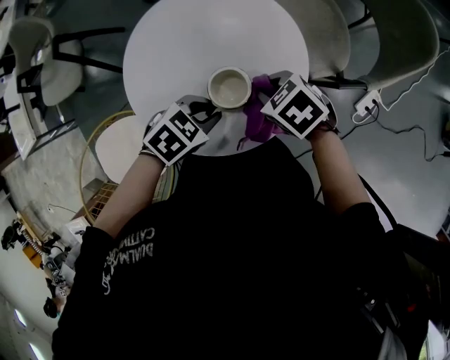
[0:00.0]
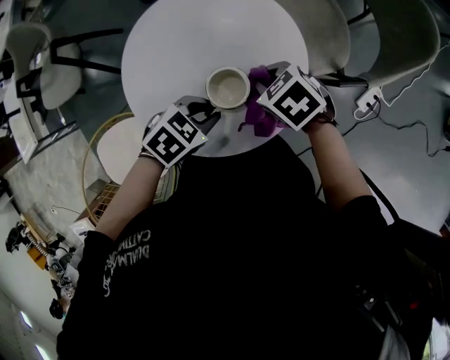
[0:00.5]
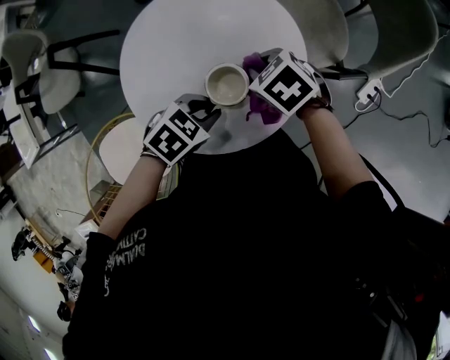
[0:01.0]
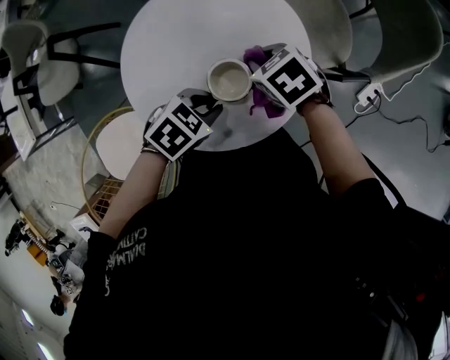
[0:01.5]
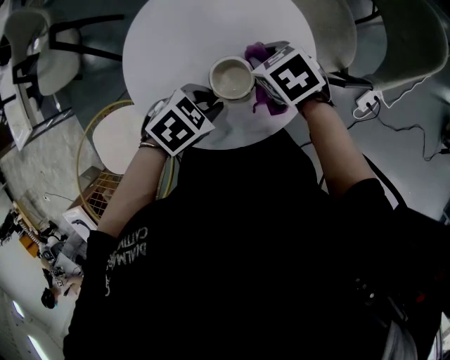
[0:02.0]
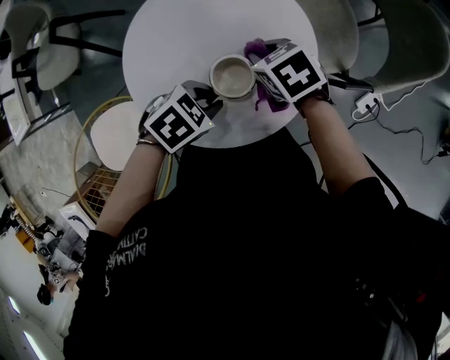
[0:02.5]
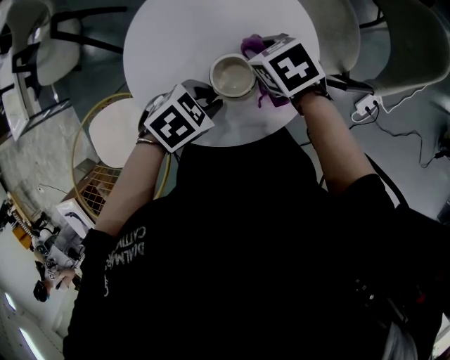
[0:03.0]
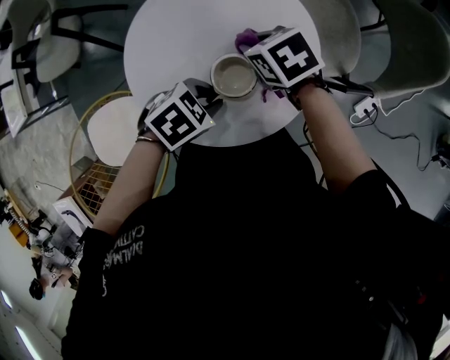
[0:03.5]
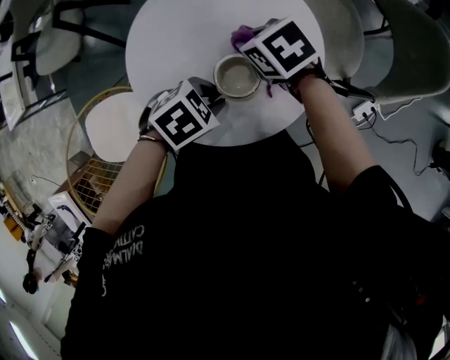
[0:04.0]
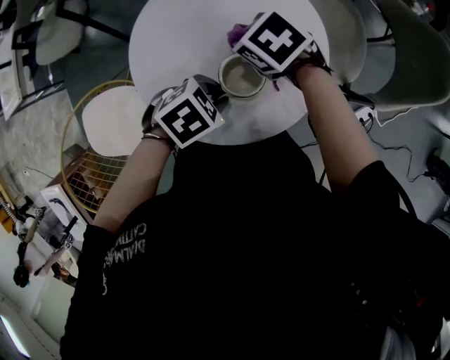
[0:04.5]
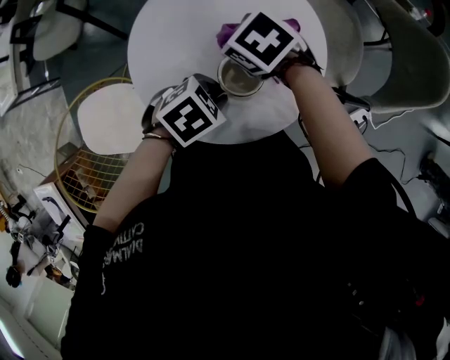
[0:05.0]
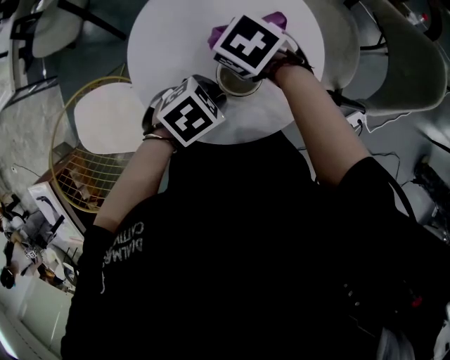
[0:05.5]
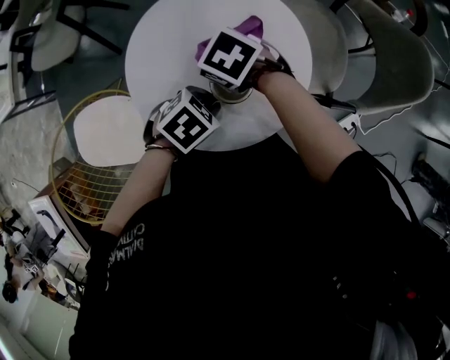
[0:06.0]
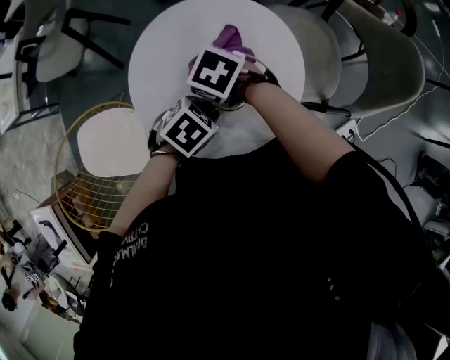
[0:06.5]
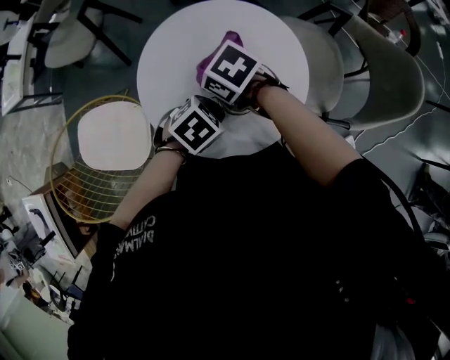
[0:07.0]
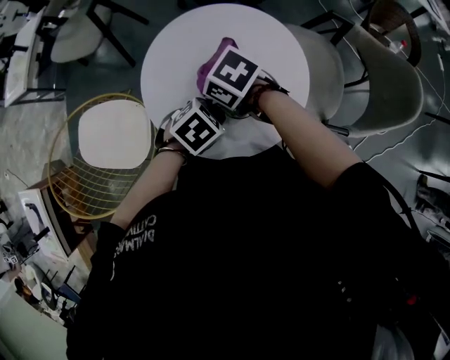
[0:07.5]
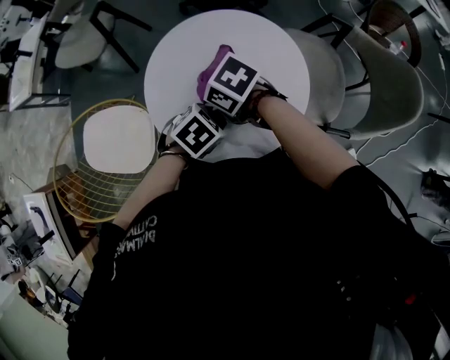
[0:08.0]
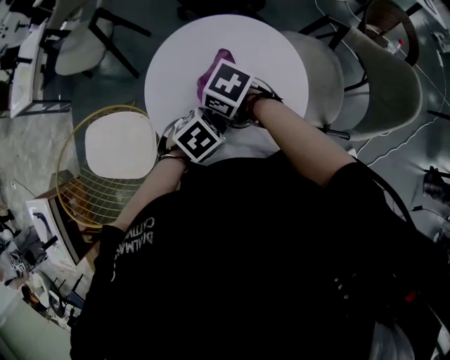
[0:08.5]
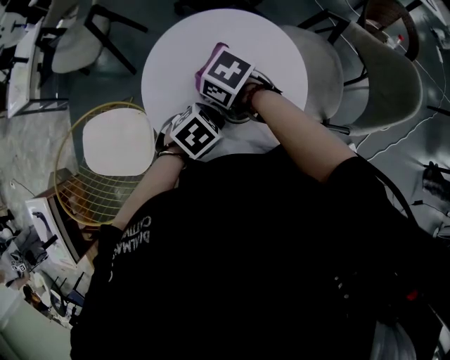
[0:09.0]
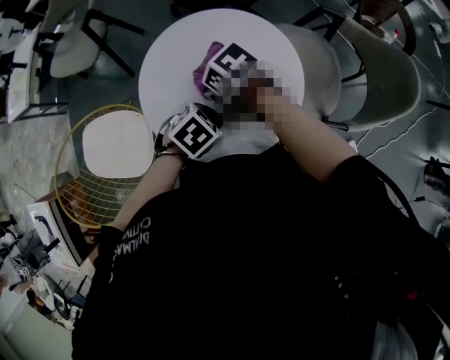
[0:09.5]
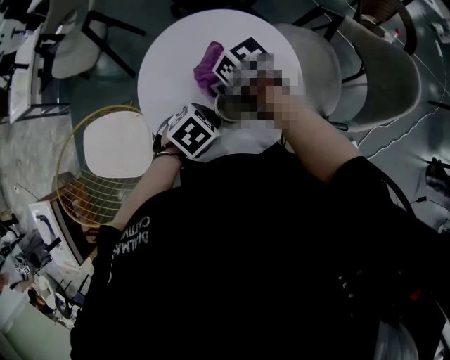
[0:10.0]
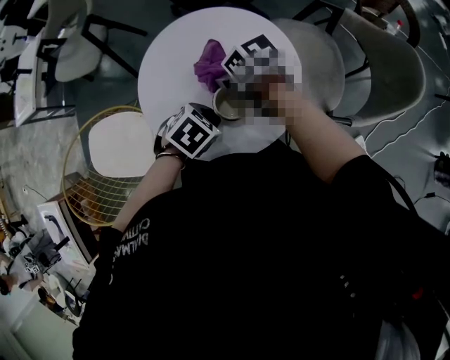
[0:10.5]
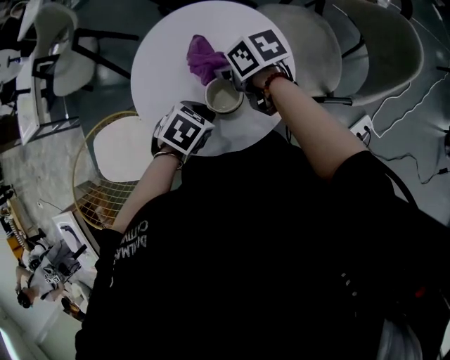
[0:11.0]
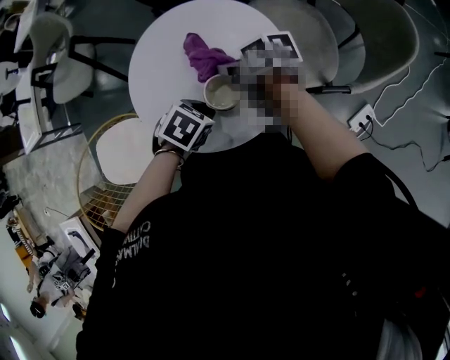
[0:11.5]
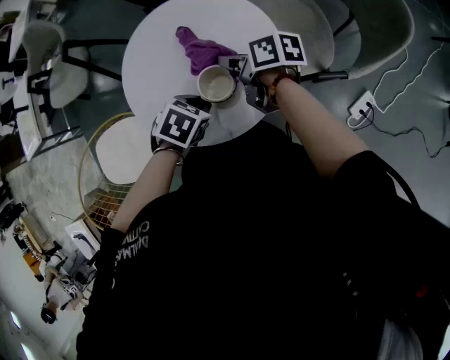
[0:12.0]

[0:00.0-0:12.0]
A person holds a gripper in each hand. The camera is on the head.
0:00.0 to 0:02.0: The right gripper changes place by roughly 5 cm.
0:02.0 to 0:04.0: The right gripper changes place by roughly 5 cm.
0:04.0 to 0:06.0: The right gripper moves about 10 cm, and turns by some 20 degrees.
0:06.0 to 0:08.0: The right gripper shifts by roughly 10 cm.
0:08.0 to 0:10.0: The right gripper shifts by approximately 5 cm, and rotates approximately 20 degrees.
0:10.0 to 0:12.0: The right gripper moves approximately 10 cm, and swivels roughly 50 degrees.

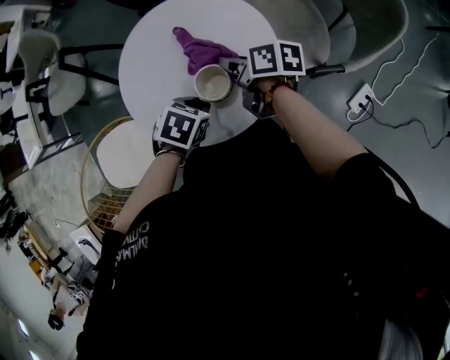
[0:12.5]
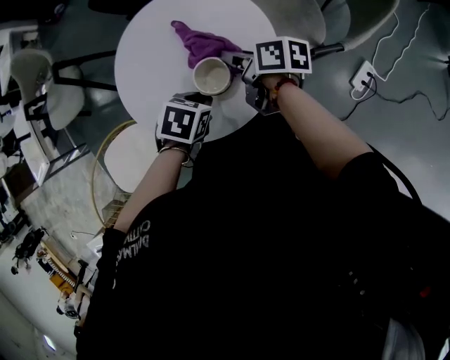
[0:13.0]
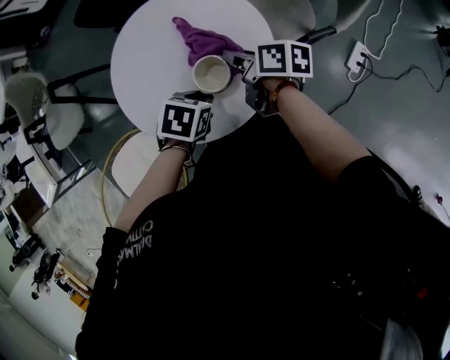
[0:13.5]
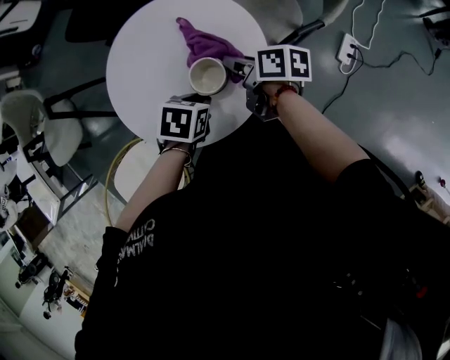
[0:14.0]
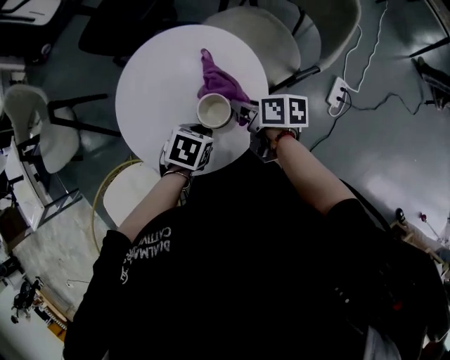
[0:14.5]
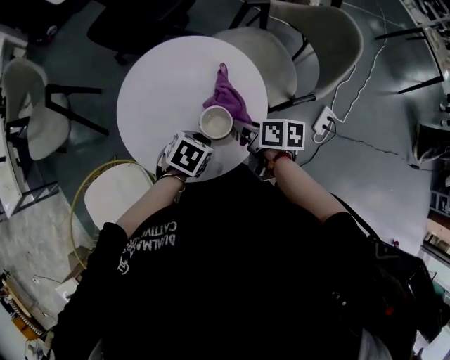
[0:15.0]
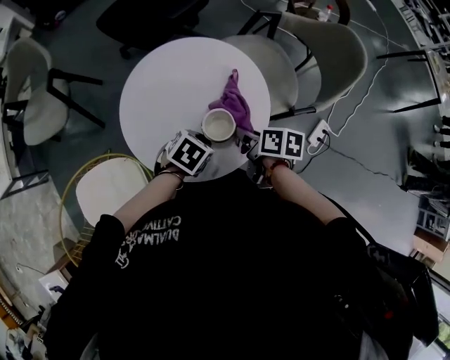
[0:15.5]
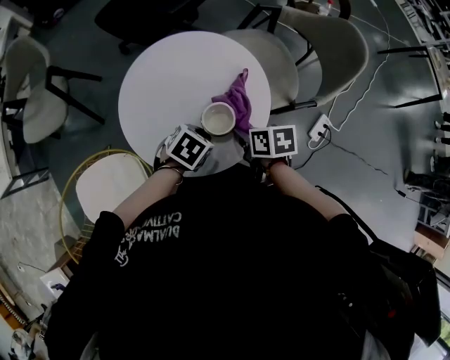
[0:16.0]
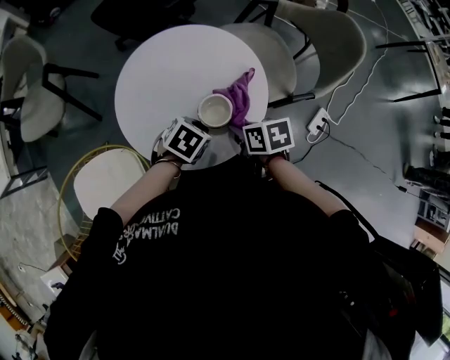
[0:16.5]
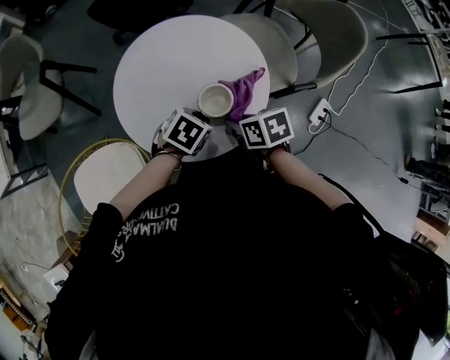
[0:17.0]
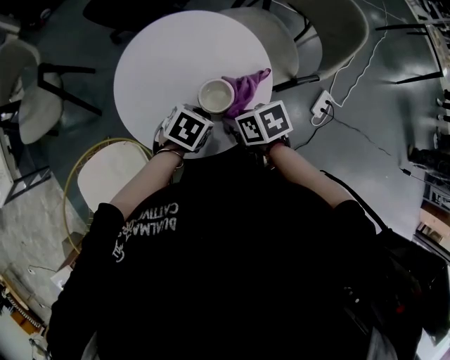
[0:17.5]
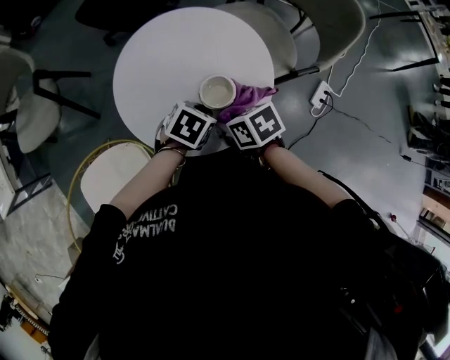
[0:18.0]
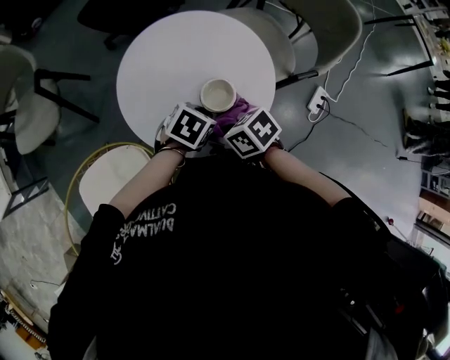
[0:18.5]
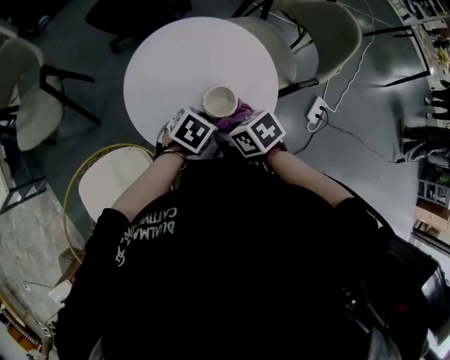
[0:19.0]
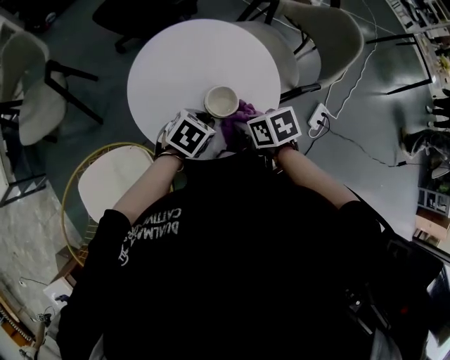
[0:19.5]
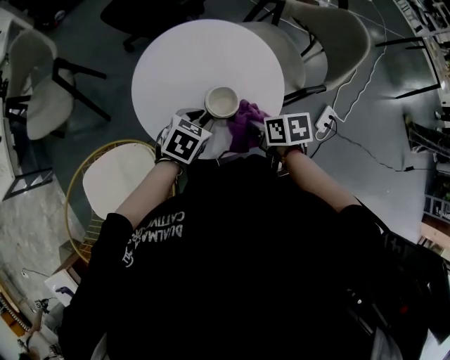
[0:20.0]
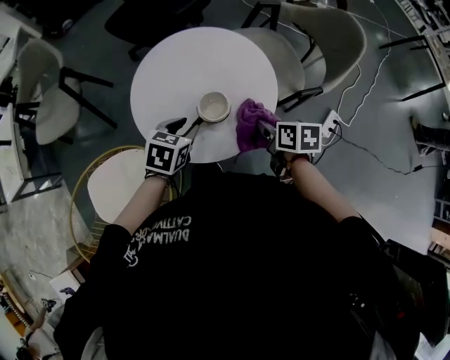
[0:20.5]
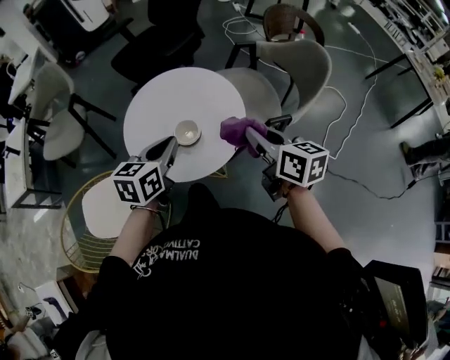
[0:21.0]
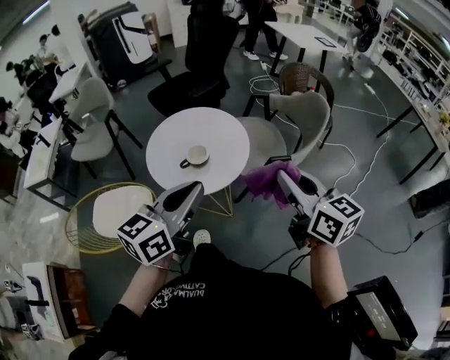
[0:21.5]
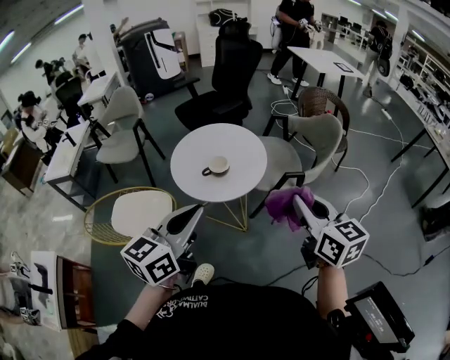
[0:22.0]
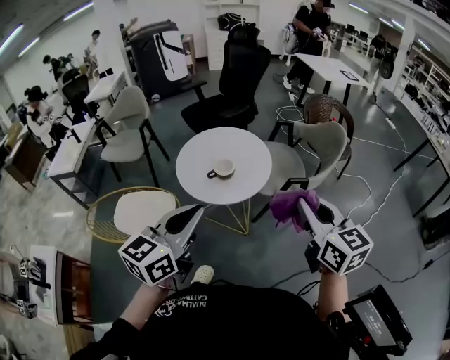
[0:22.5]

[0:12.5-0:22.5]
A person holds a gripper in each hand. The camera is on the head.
0:12.5 to 0:14.5: The right gripper heads backward, covering approximately 5 cm.
0:14.5 to 0:16.5: The right gripper travels backward by approximately 5 cm, and changes its angle by about 30 degrees.
0:16.5 to 0:18.5: The right gripper shifts by some 15 cm, and turns by approximately 20 degrees.
0:18.5 to 0:20.5: The left gripper ends up about 5 cm from where it was, and turns by some 20 degrees. Meanwhile the right gripper ends up some 20 cm from where it was, and rotates about 40 degrees.
0:20.5 to 0:22.5: The left gripper travels backward and upward by some 50 cm, points its fingers roughly 50 degrees further upward, and closes; the right gripper shifts approximately 50 cm upward, backward and to the right, and points its fingers some 40 degrees further upward.

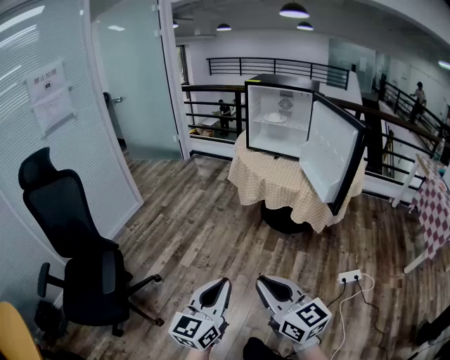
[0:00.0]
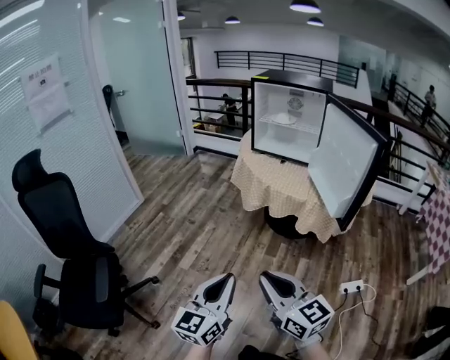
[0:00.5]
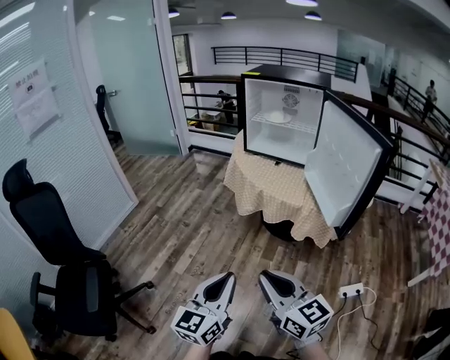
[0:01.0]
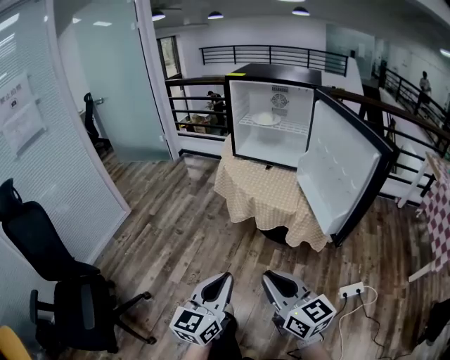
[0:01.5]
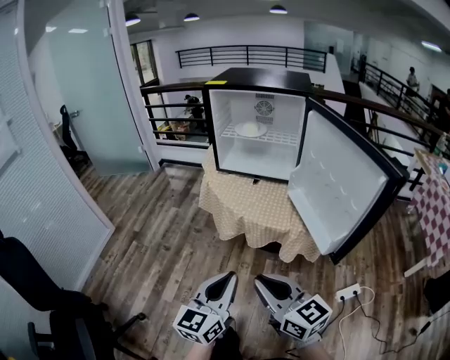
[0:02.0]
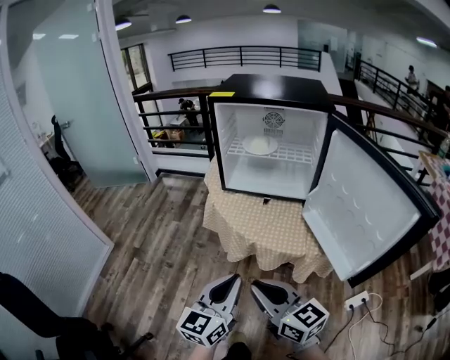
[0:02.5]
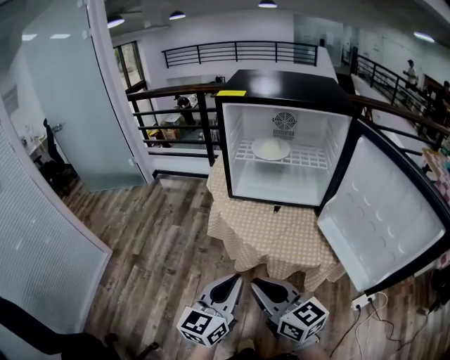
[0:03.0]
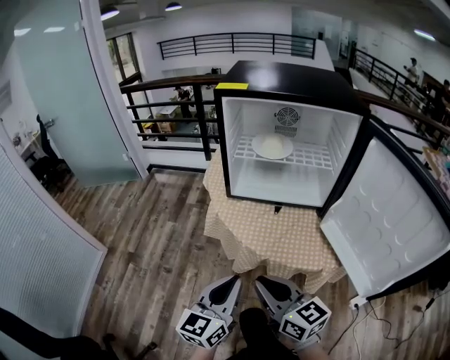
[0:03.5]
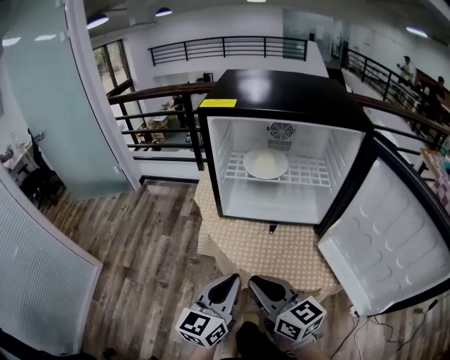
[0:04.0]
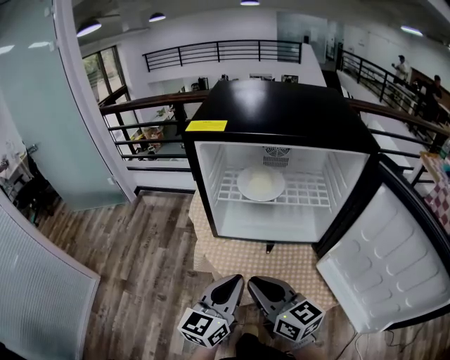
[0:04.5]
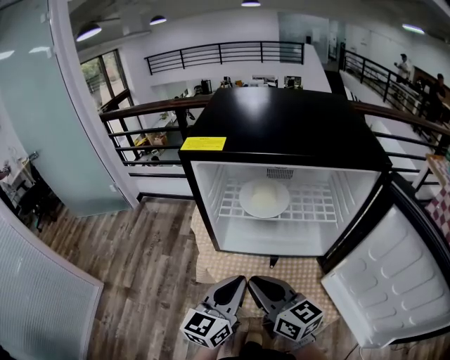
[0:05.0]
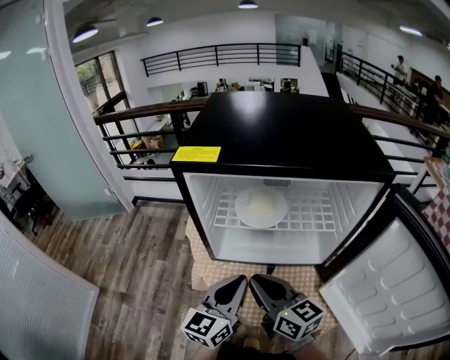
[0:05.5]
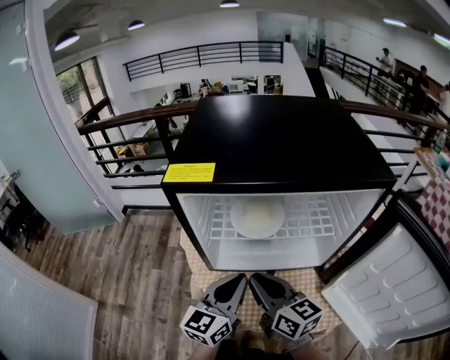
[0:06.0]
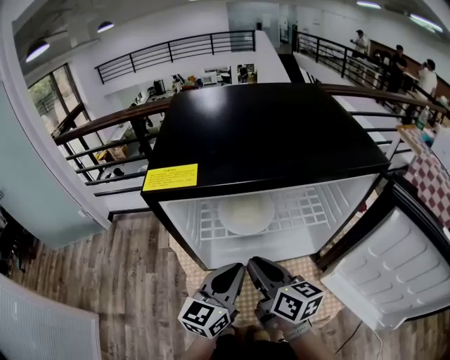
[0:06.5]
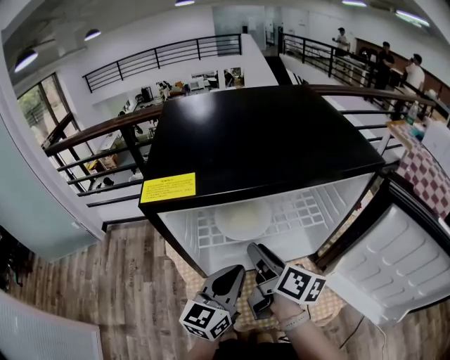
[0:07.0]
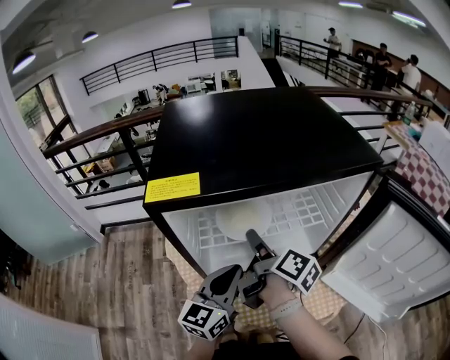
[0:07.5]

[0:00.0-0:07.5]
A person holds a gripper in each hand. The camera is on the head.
0:00.0 to 0:02.0: The left gripper moves forward and to the right, approximately 35 cm. The right gripper is displaced forward by approximately 30 cm.
0:02.0 to 0:04.0: Both grippers travel together forward, roughly 30 cm.
0:04.0 to 0:05.5: The two grippers go about 15 cm forward.
0:05.5 to 0:07.5: The right gripper ends up about 15 cm from where it was, rolls clockwise, seen from behind, by about 50 degrees, and opens up. Meanwhile the left gripper changes place by some 5 cm.
